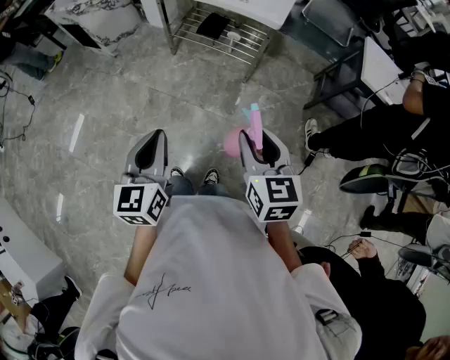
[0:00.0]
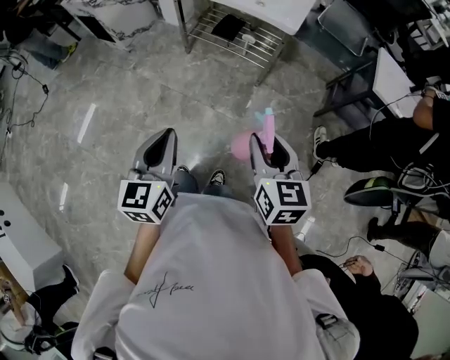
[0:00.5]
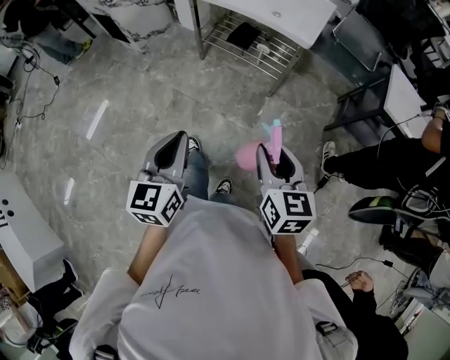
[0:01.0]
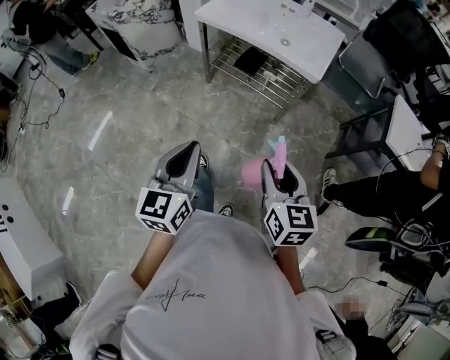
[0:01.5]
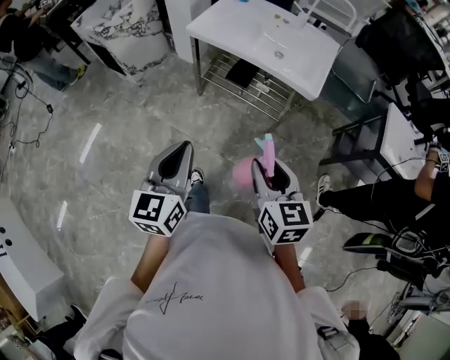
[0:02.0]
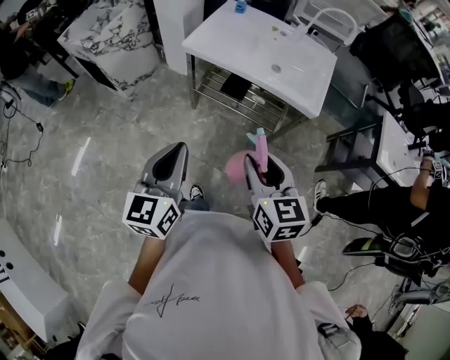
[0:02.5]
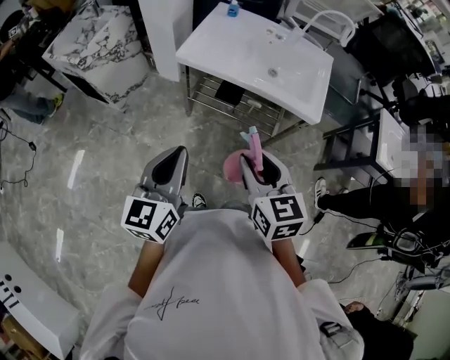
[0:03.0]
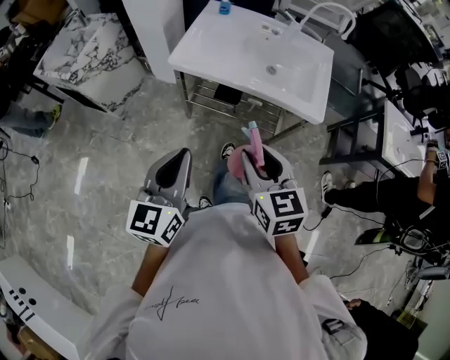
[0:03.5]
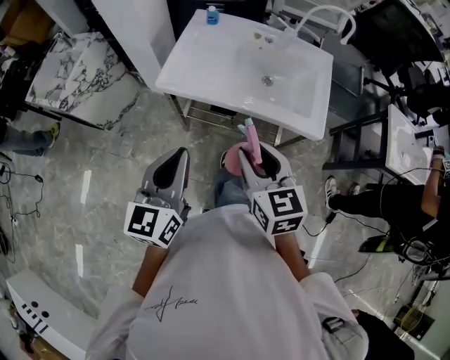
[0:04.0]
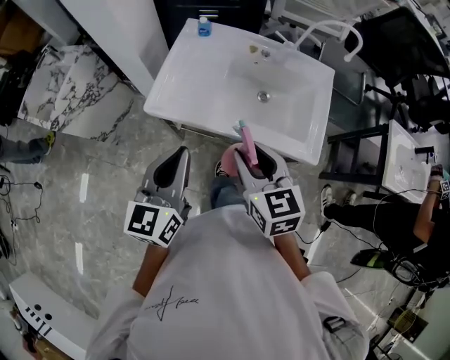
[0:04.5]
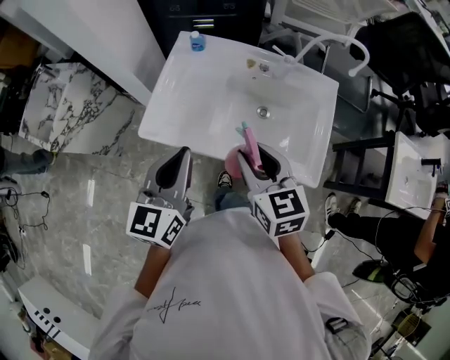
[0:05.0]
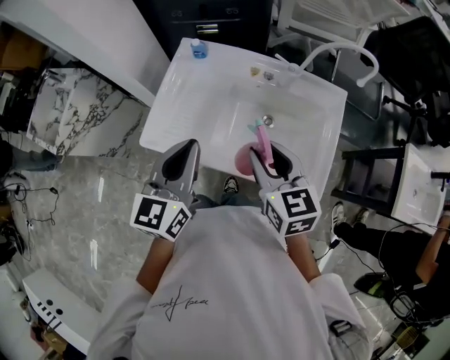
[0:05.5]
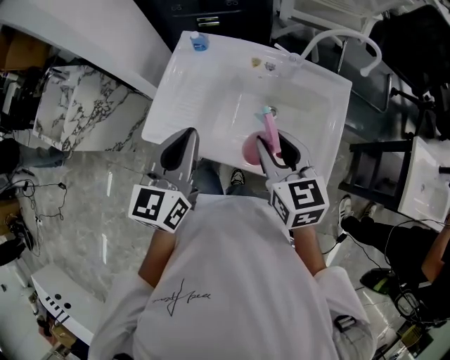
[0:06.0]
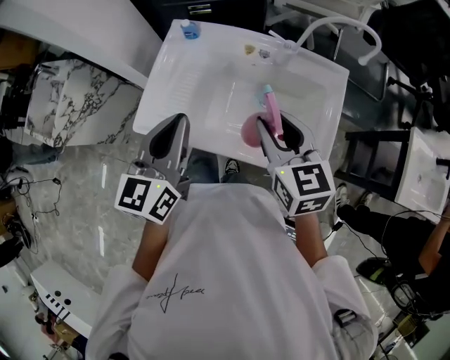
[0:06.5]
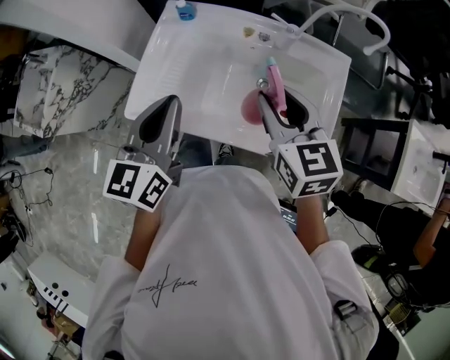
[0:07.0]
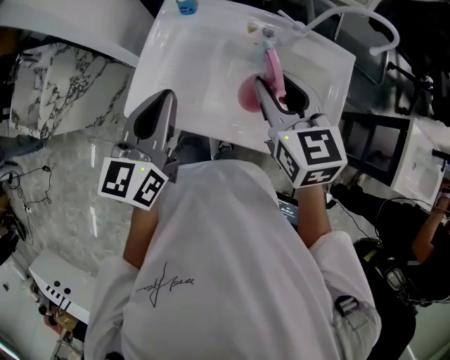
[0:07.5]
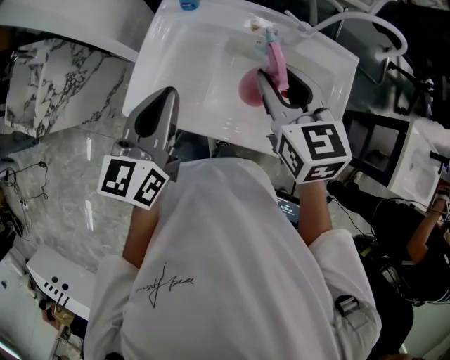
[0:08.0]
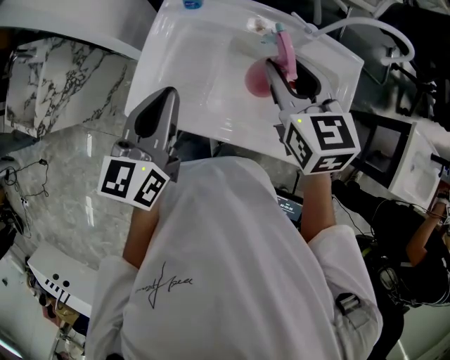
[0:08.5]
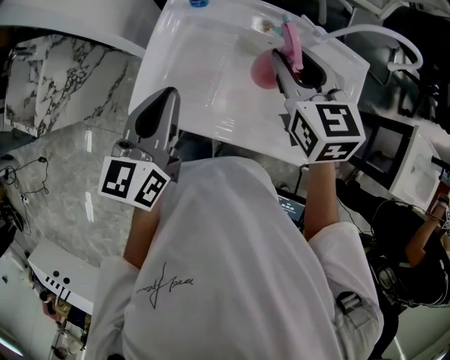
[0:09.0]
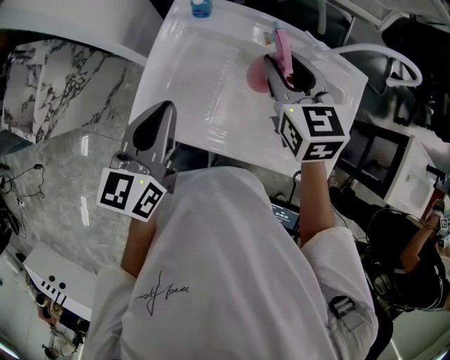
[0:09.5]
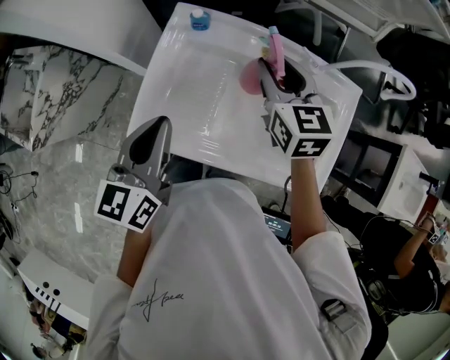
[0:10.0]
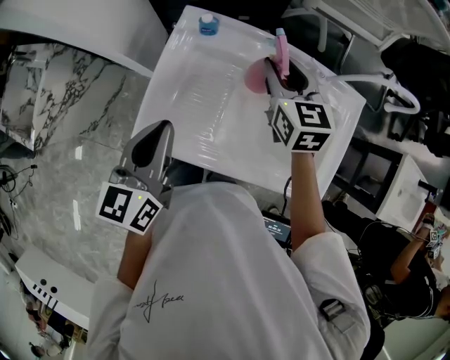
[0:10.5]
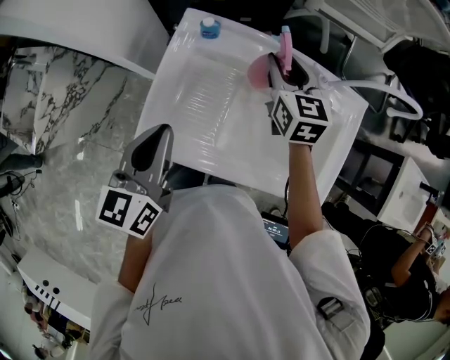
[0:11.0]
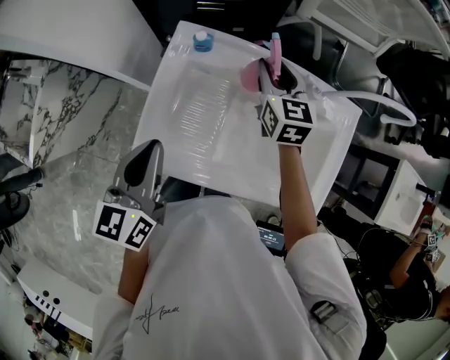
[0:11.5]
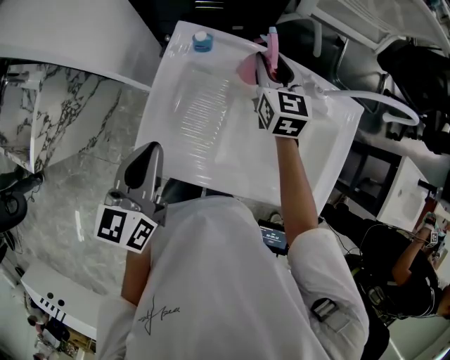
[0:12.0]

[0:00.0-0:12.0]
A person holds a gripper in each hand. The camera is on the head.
0:00.0 to 0:02.0: The two grippers go about 20 cm forward.
0:02.0 to 0:04.0: Both grippers move forward, some 30 cm.
0:04.0 to 0:06.0: The two grippers go about 30 cm forward and to the right.
0:06.0 to 0:08.0: The right gripper is displaced forward by some 10 cm. Meanwhile the left gripper is displaced forward by roughly 5 cm.
0:08.0 to 0:10.0: The left gripper travels to the left by approximately 5 cm; the right gripper goes about 10 cm forward.
0:10.0 to 0:12.0: The right gripper shifts approximately 10 cm forward and downward; the left gripper changes place by about 5 cm.

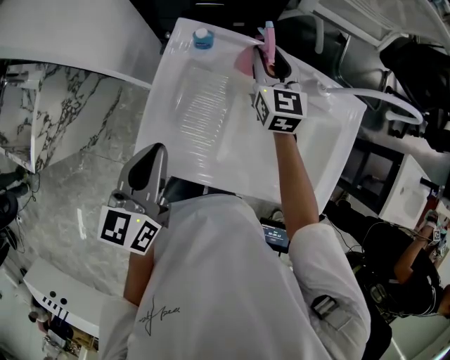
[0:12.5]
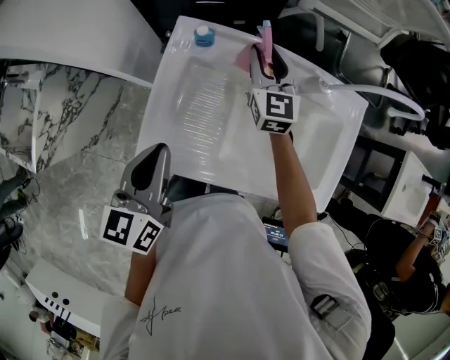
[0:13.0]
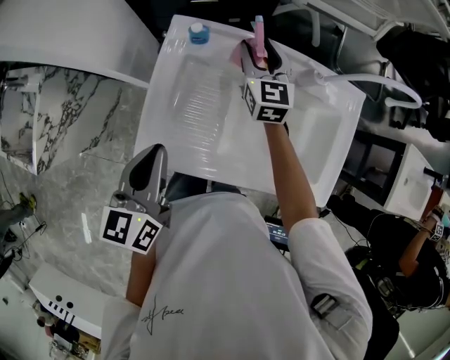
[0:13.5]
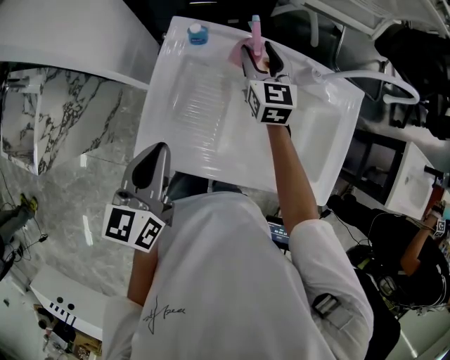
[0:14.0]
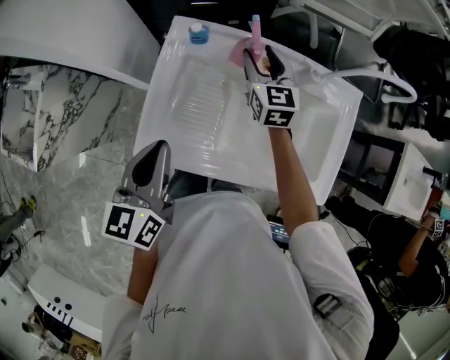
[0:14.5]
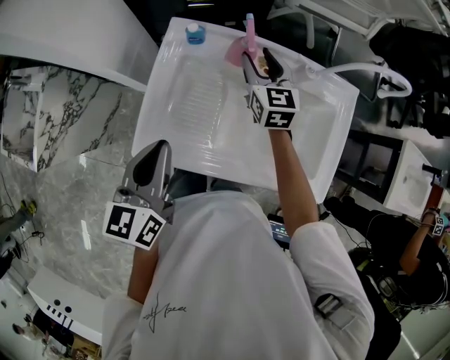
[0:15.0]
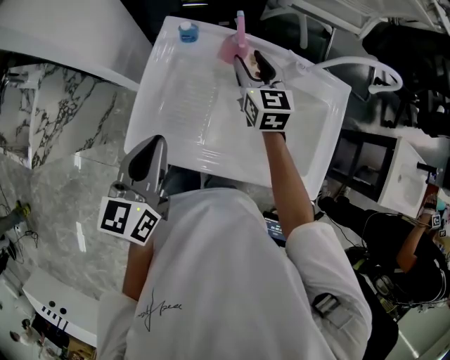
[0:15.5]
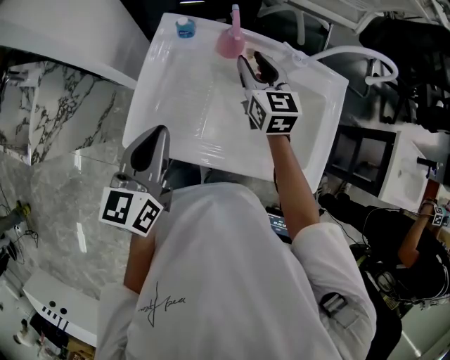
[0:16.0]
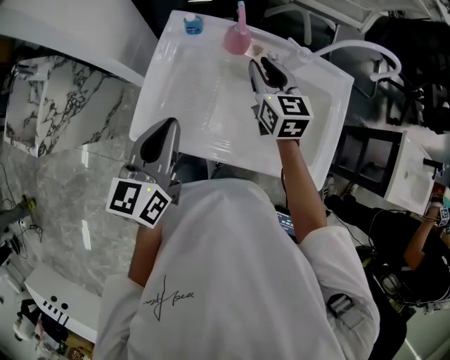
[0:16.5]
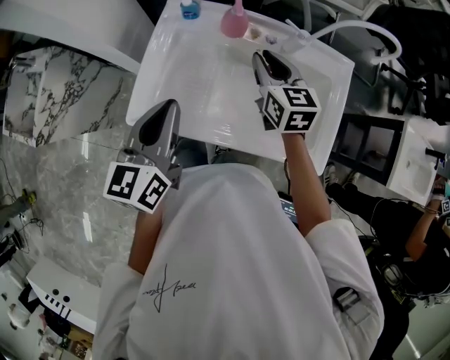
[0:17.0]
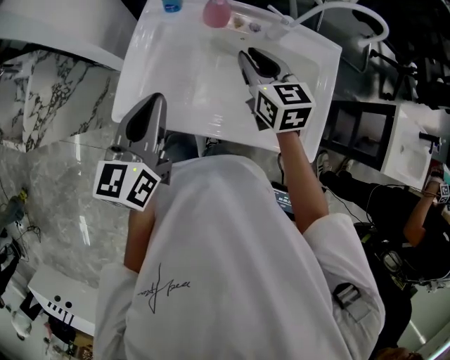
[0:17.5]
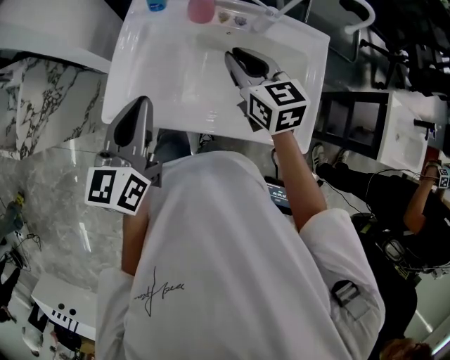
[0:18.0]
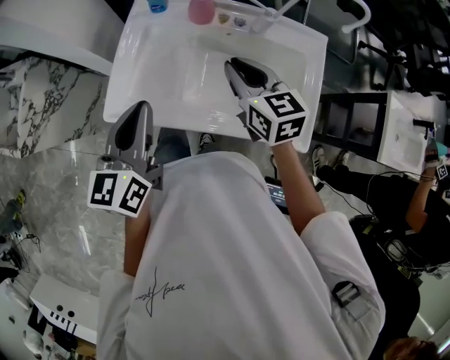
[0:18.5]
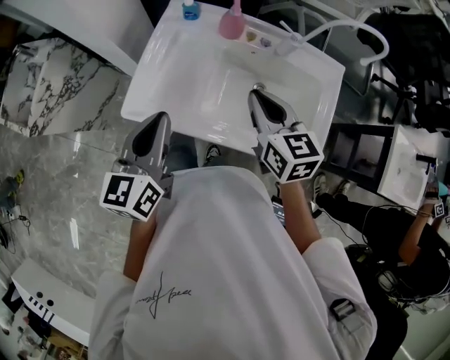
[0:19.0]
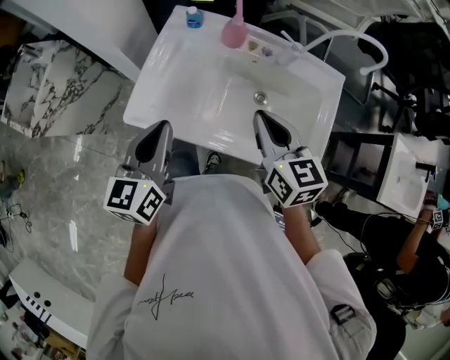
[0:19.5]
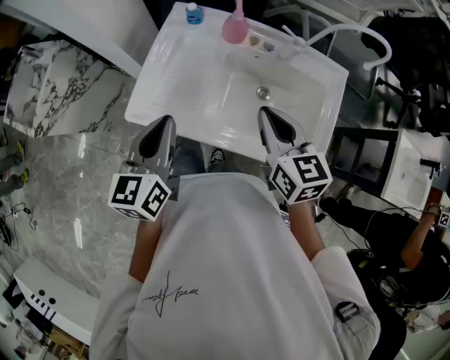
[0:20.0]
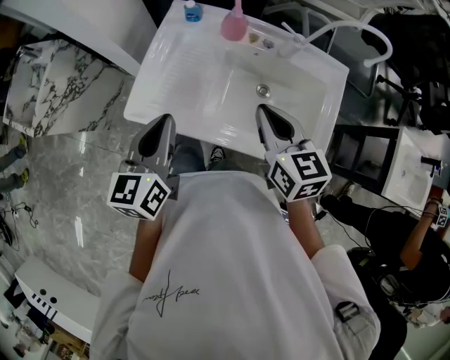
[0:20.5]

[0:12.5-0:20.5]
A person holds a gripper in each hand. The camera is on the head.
0:12.5 to 0:14.5: The grippers stay close to where they were, moving slightly.
0:14.5 to 0:16.5: The left gripper changes place by some 5 cm; the right gripper shifts roughly 10 cm backward, and closes its fingers.
0:16.5 to 0:18.5: The right gripper moves backward, about 10 cm. The left gripper changes place by roughly 5 cm.
0:18.5 to 0:20.5: The right gripper travels backward by some 5 cm.

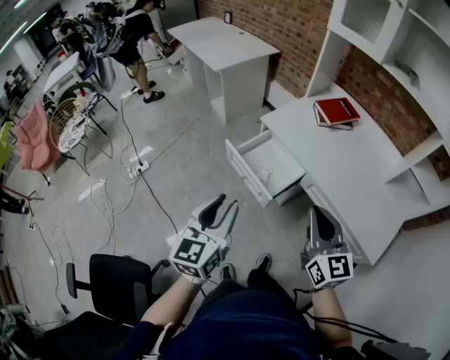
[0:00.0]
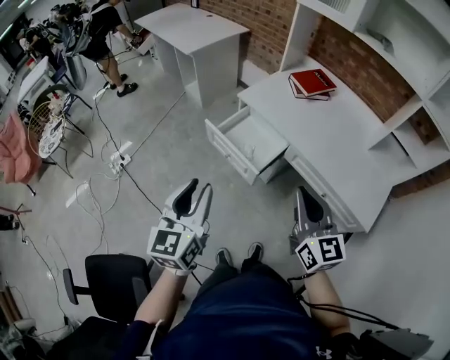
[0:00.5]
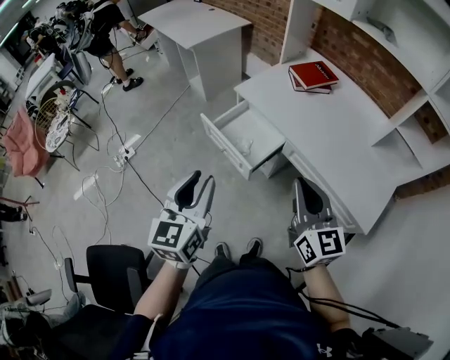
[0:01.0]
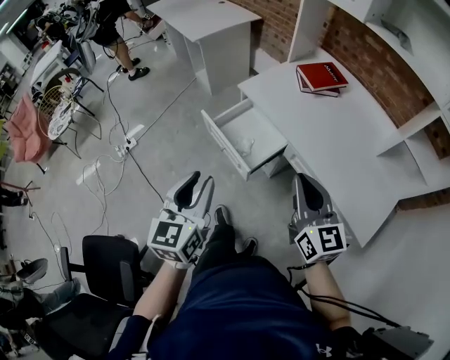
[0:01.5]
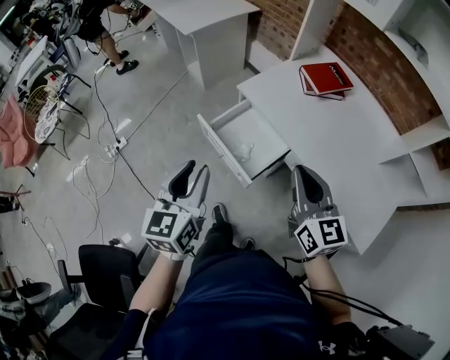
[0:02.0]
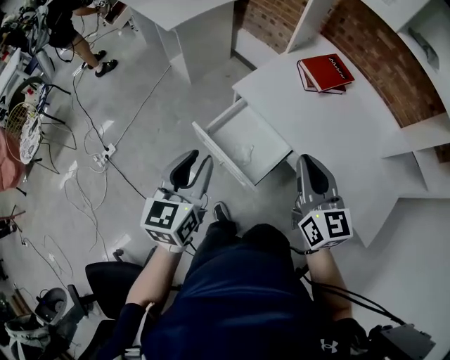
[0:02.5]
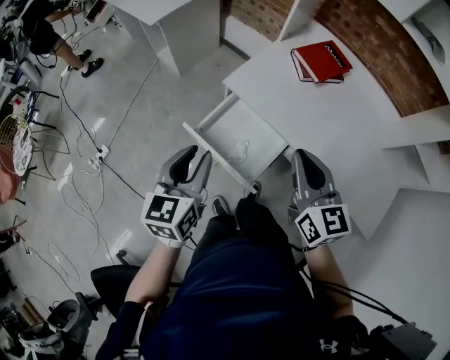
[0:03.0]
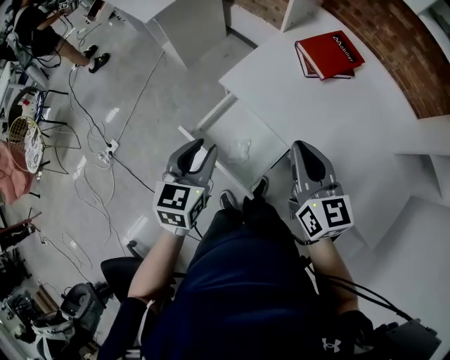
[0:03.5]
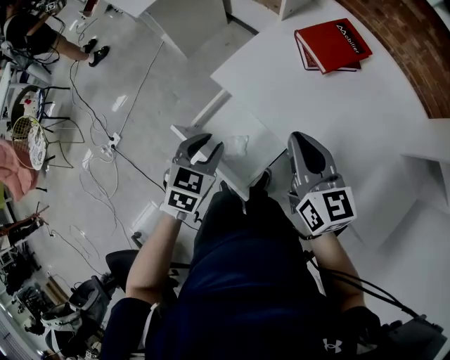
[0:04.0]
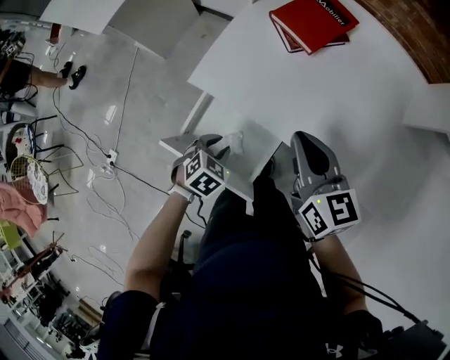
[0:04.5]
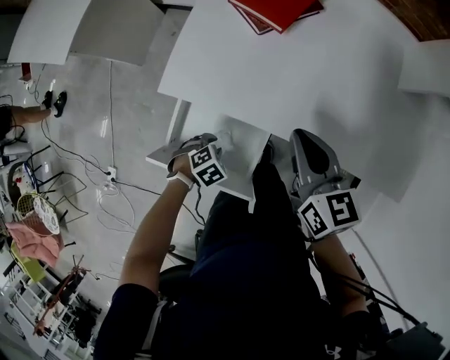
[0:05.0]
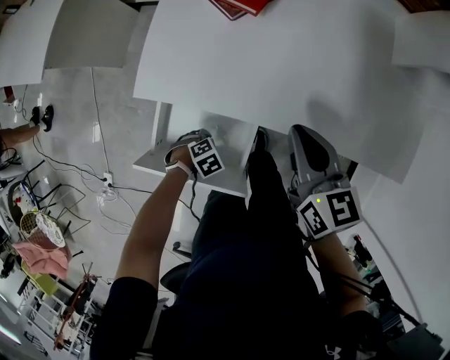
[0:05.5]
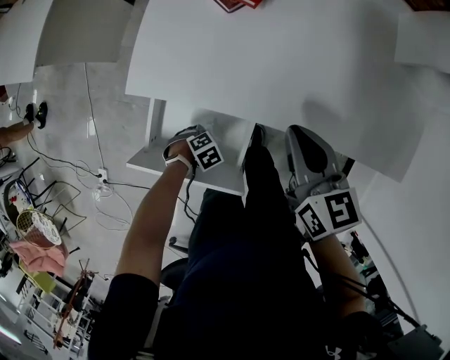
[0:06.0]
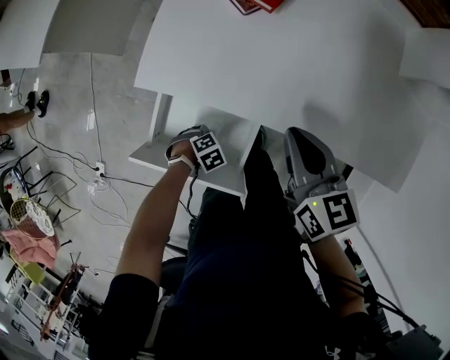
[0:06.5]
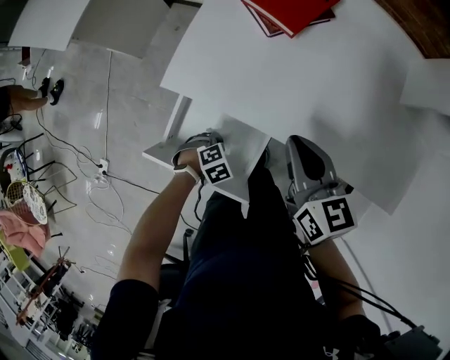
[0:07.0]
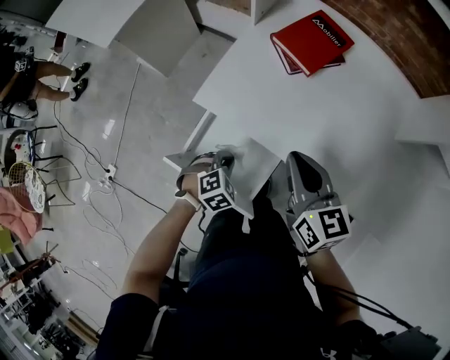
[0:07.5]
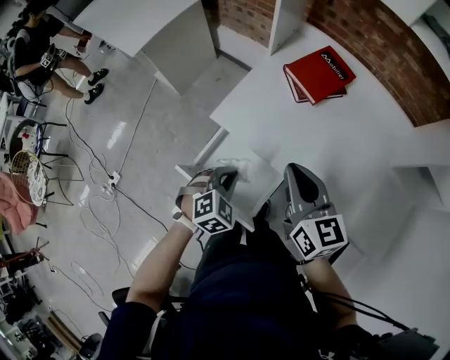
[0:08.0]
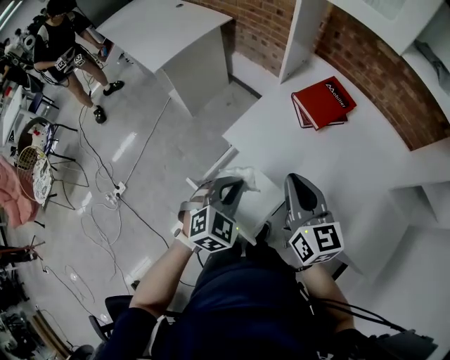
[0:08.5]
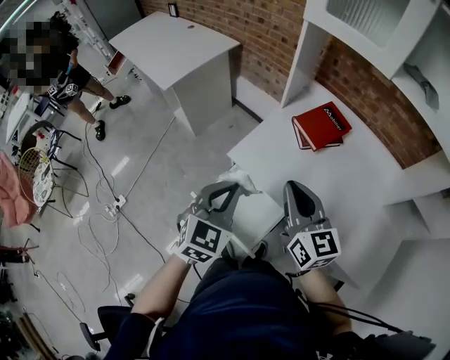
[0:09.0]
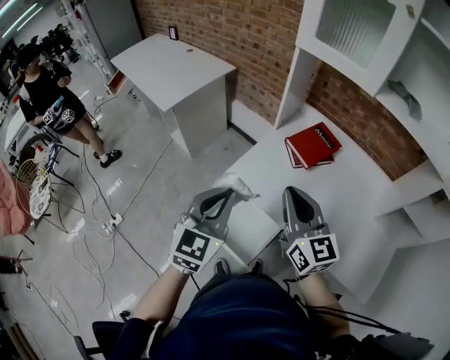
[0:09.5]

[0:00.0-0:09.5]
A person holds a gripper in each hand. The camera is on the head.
0:00.0 to 0:02.0: Both grippers travel together forward, approximately 15 cm.
0:02.0 to 0:04.0: The left gripper shifts some 30 cm forward and downward, and tips its fingers downward by approximately 30 degrees. The right gripper moves forward, about 20 cm.
0:04.0 to 0:05.5: The right gripper shifts by some 10 cm, and swivels about 30 degrees. The left gripper heads downward, covering about 30 cm, and tips its fingers downward by about 40 degrees.
0:05.5 to 0:07.5: The right gripper shifts by approximately 10 cm, while the left gripper heads upward, covering some 15 cm, turns by approximately 30 degrees, and closes.
0:07.5 to 0:09.5: The left gripper is displaced upward by some 40 cm, and tilts its fingers about 50 degrees upward; the right gripper heads upward, covering approximately 15 cm, and swivels some 20 degrees.
